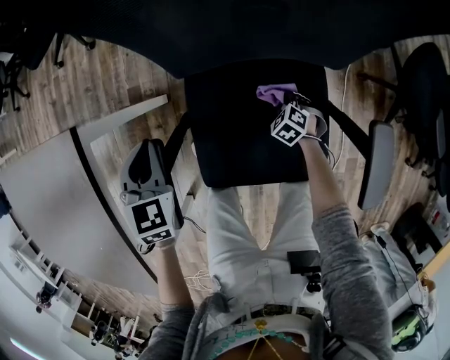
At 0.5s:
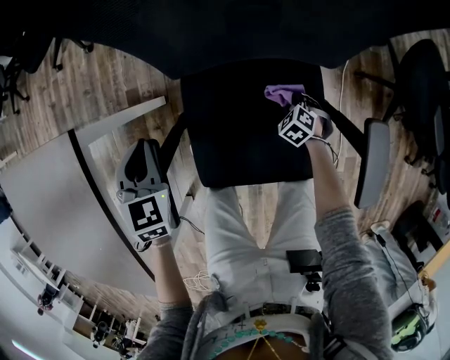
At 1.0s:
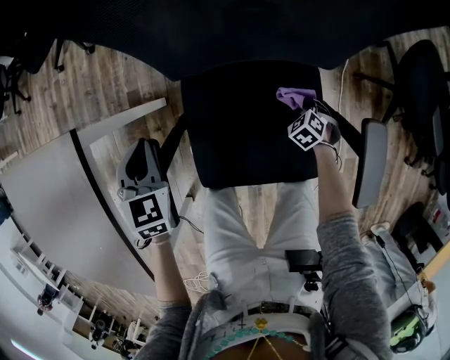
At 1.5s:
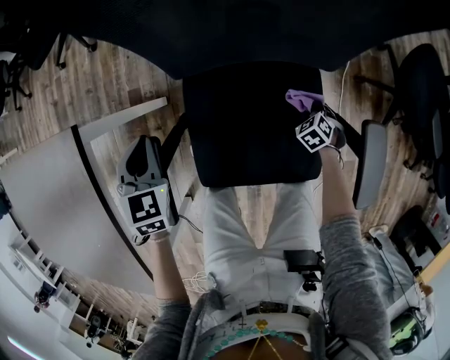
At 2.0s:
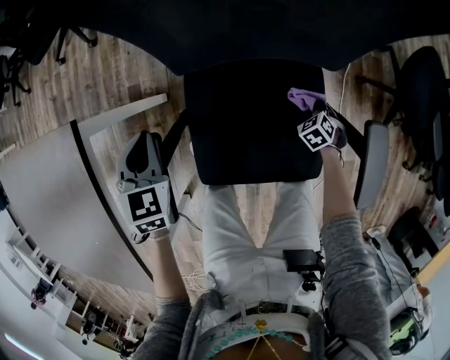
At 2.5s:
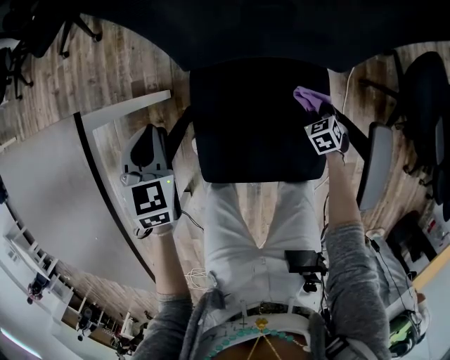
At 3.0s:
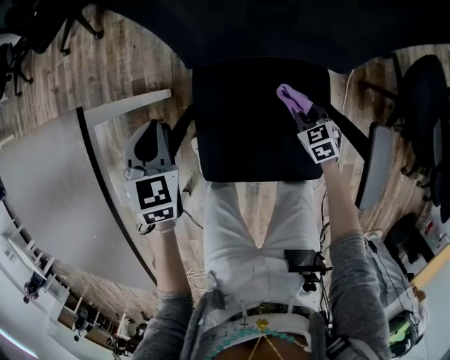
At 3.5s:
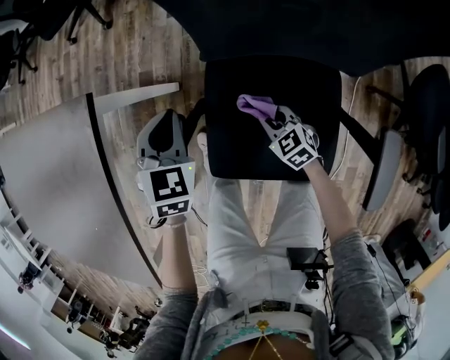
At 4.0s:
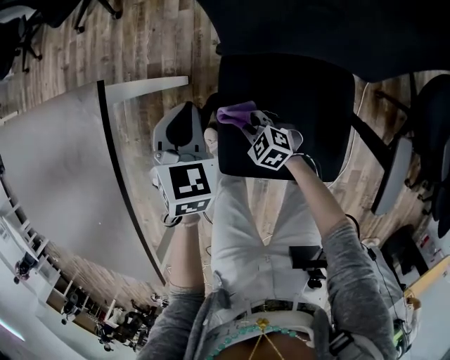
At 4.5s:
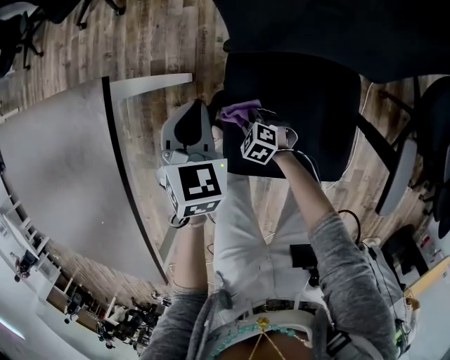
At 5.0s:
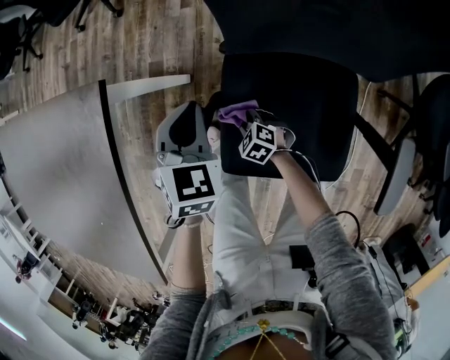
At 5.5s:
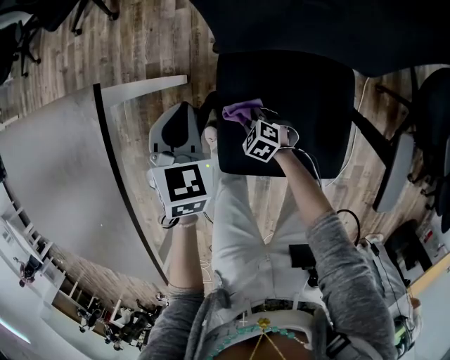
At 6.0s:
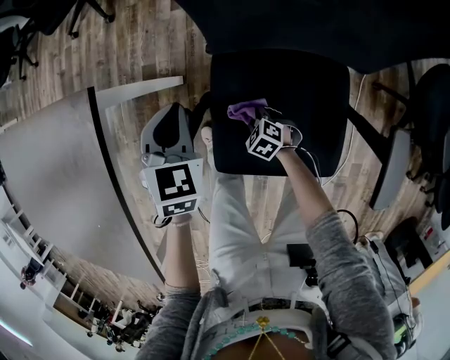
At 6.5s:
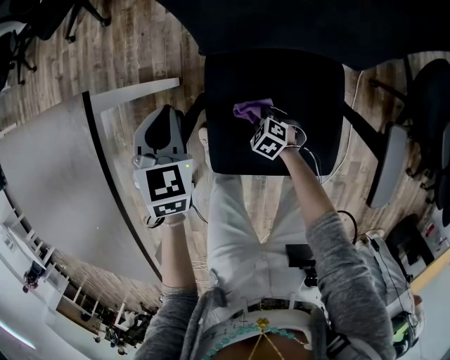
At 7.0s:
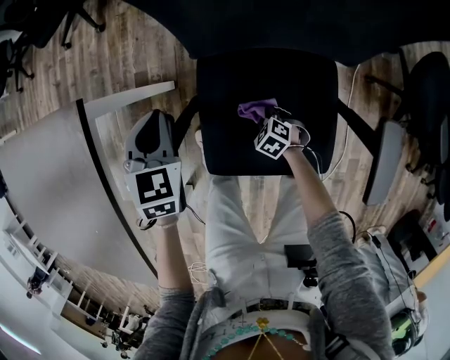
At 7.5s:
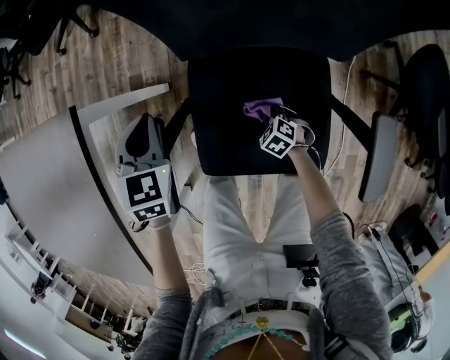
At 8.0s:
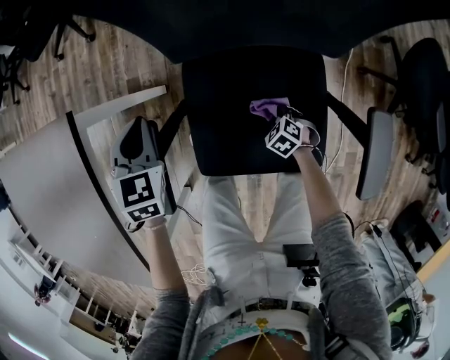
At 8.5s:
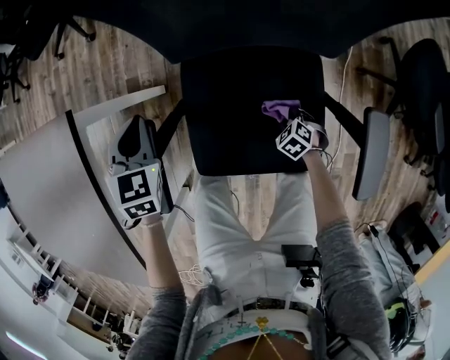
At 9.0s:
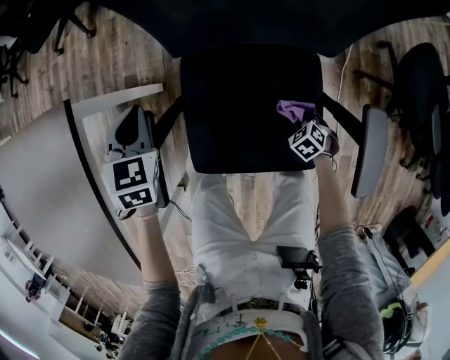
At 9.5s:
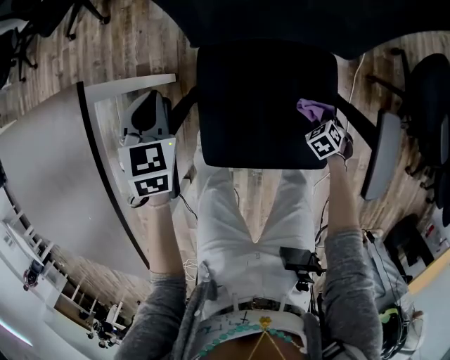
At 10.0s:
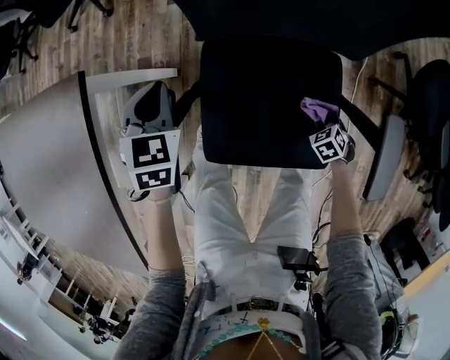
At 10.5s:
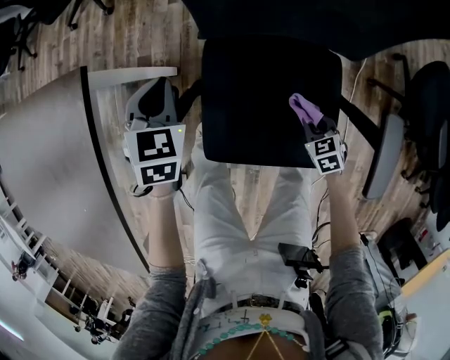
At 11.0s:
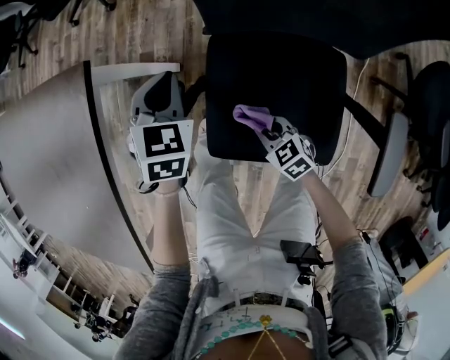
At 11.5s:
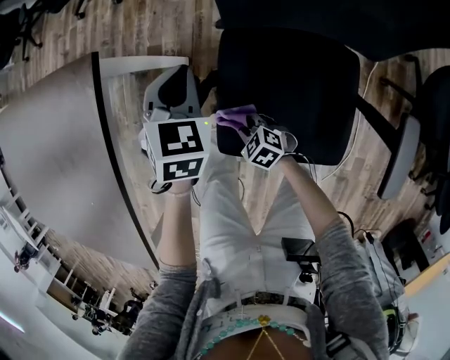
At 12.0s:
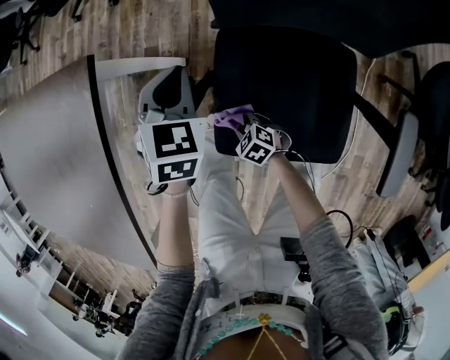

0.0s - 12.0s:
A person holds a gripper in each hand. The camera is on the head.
0.0s - 2.0s: The right gripper heads to the right, covering roughly 10 cm.
2.0s - 4.0s: The right gripper moves about 35 cm, and rotates roughly 40 degrees.
4.0s - 6.0s: The right gripper is displaced downward by roughly 5 cm.
6.0s - 8.0s: The right gripper moves to the right and backward, some 15 cm.
8.0s - 10.0s: The right gripper changes place by about 10 cm.
10.0s - 12.0s: The right gripper moves roughly 10 cm upward and comes back, and changes its angle by approximately 30 degrees.

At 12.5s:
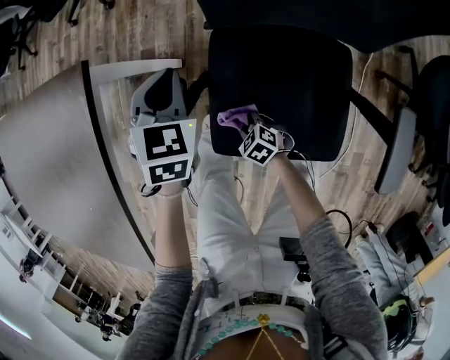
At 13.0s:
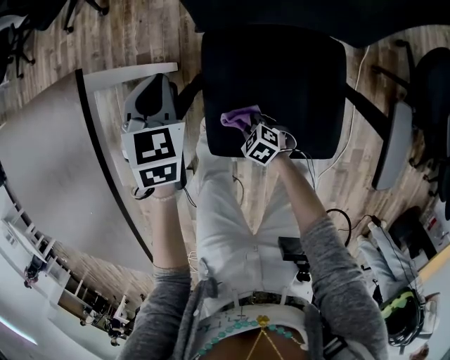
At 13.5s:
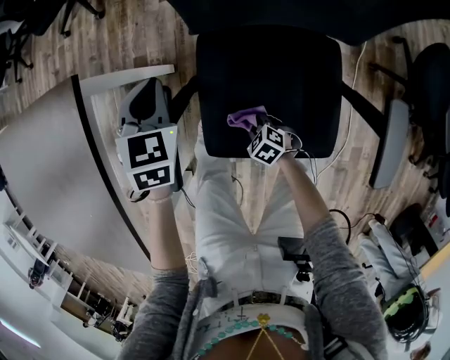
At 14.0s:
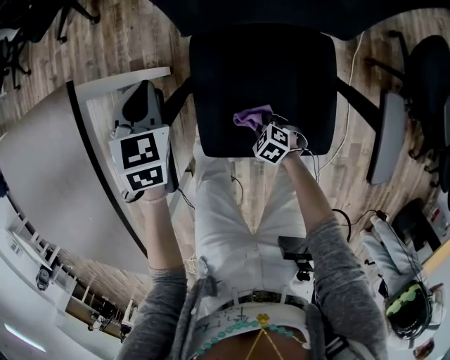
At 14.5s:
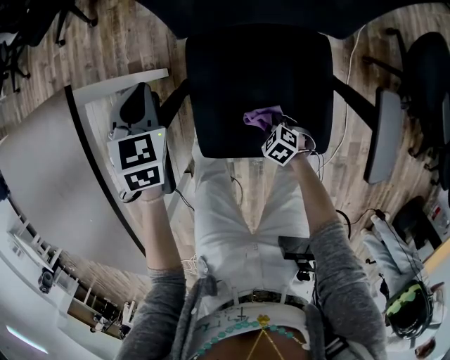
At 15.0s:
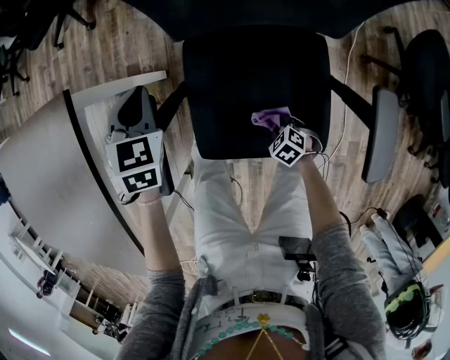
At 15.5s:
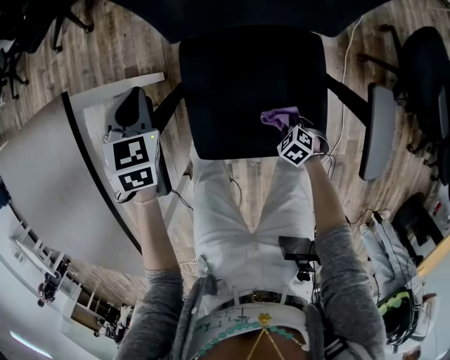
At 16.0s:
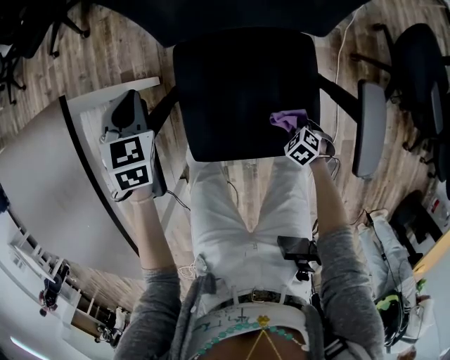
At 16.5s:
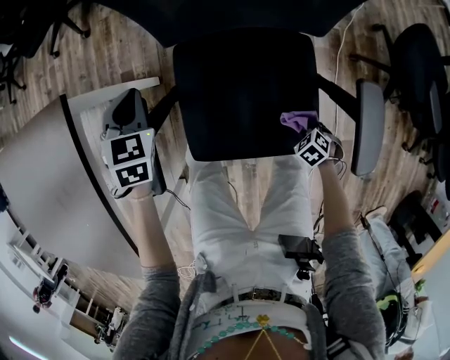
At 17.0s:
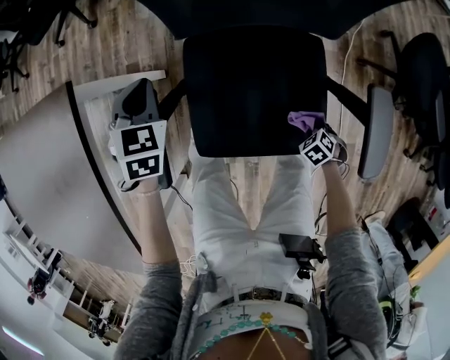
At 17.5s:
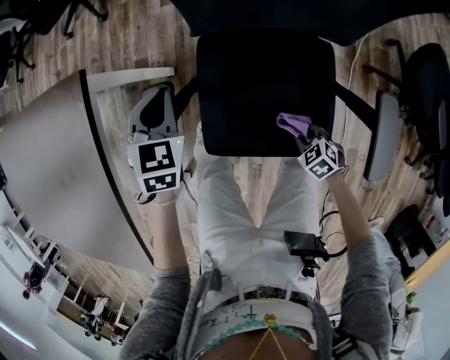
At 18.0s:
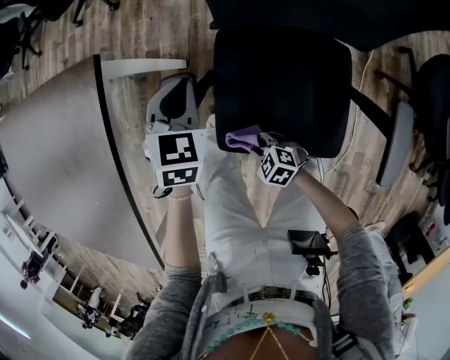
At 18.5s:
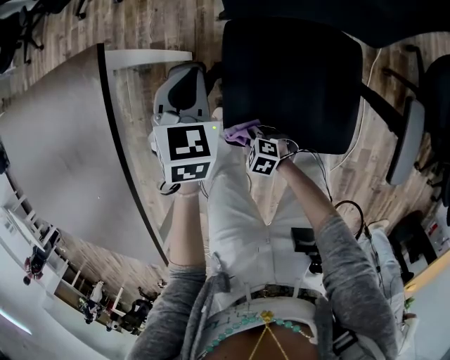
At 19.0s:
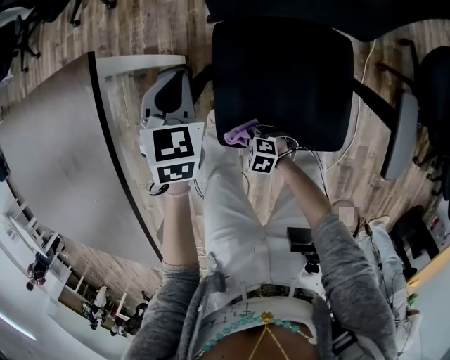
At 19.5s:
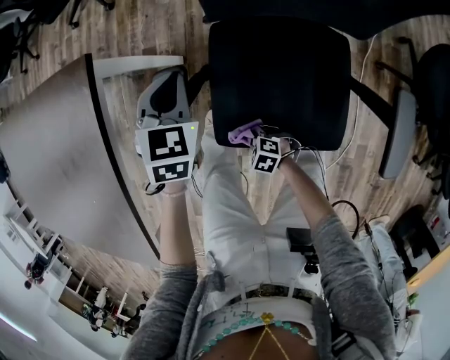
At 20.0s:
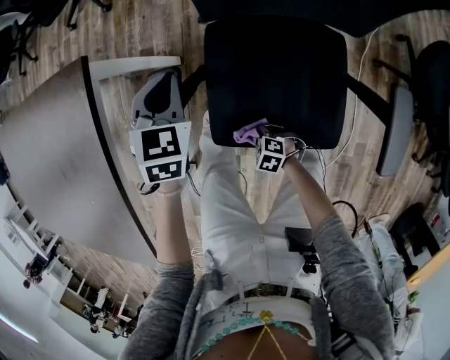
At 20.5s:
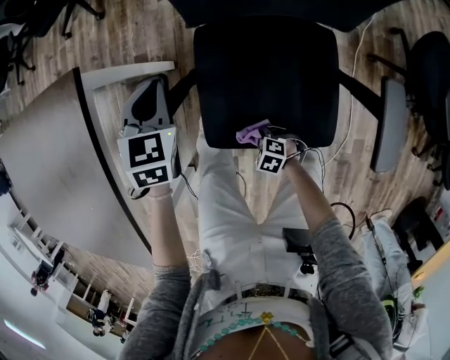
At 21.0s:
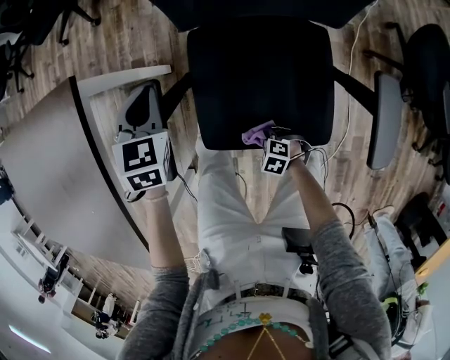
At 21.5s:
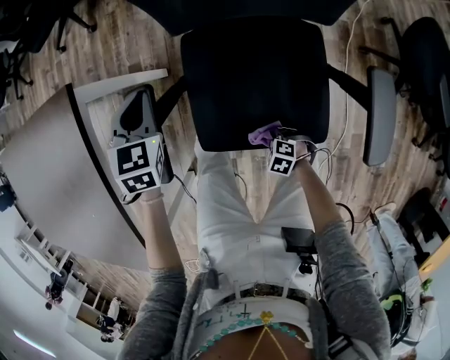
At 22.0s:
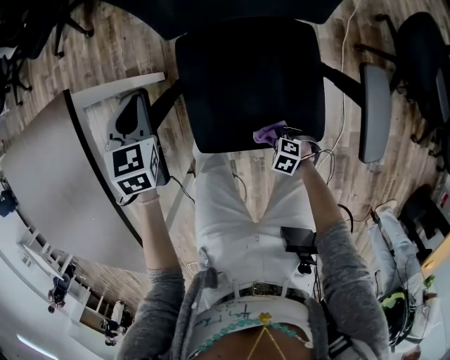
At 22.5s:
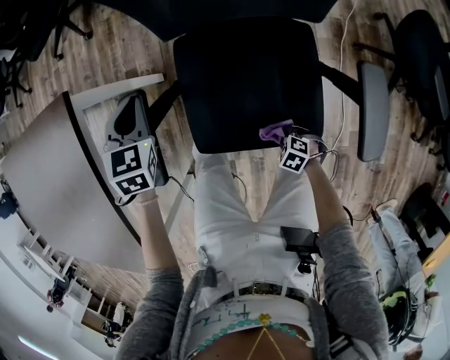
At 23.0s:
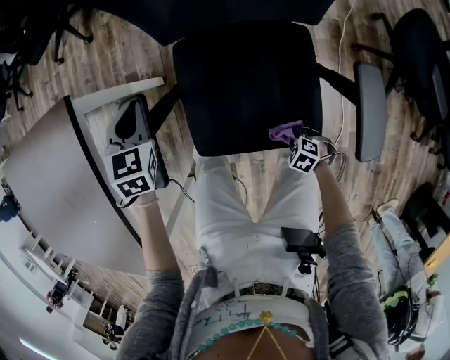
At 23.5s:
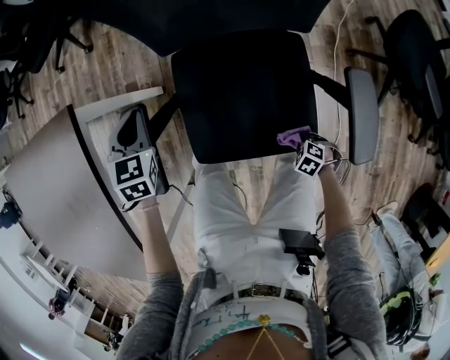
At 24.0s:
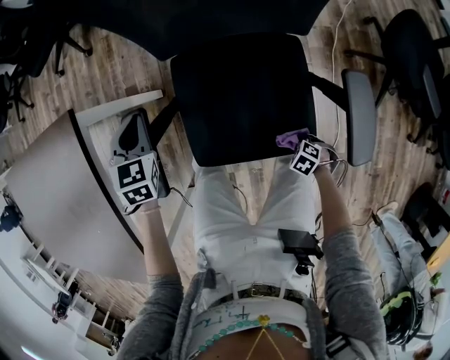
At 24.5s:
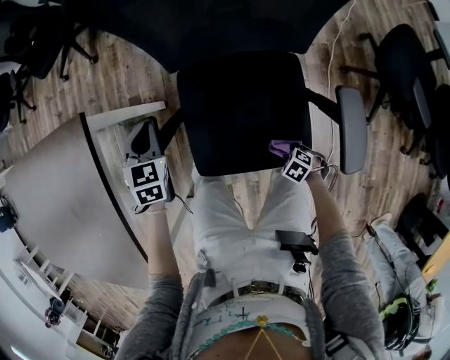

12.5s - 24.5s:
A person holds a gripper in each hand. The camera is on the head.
12.5s - 14.5s: The right gripper is displaced to the right and backward by some 15 cm.
14.5s - 16.5s: The right gripper moves roughly 15 cm.
16.5s - 18.5s: The right gripper ends up roughly 35 cm from where it was, and changes its angle by about 30 degrees.
18.5s - 20.5s: The right gripper shifts roughly 10 cm backward and to the right.
20.5s - 22.5s: The right gripper moves approximately 15 cm.
22.5s - 24.5s: The right gripper moves some 5 cm.

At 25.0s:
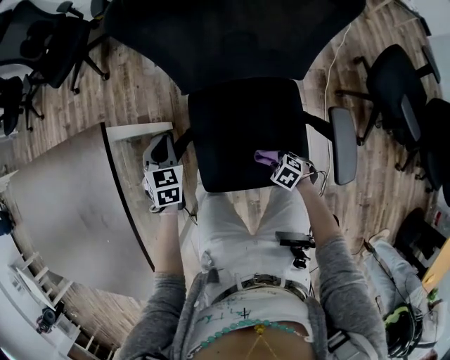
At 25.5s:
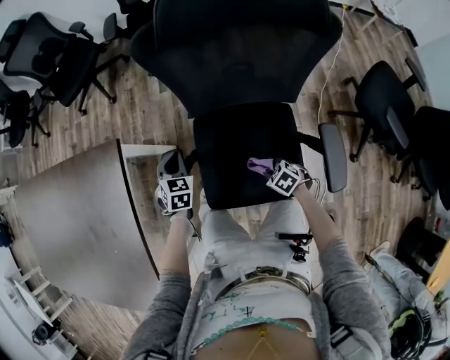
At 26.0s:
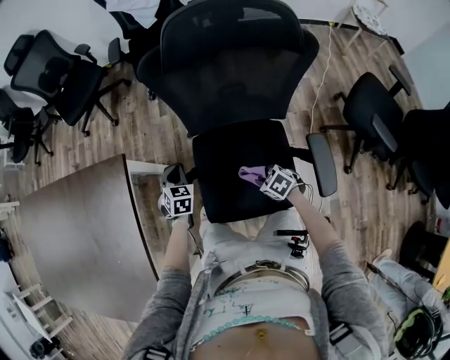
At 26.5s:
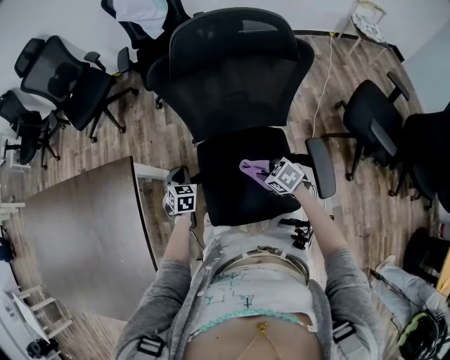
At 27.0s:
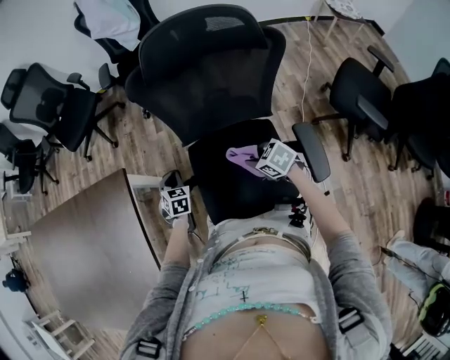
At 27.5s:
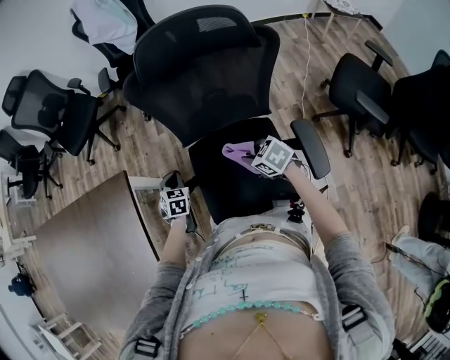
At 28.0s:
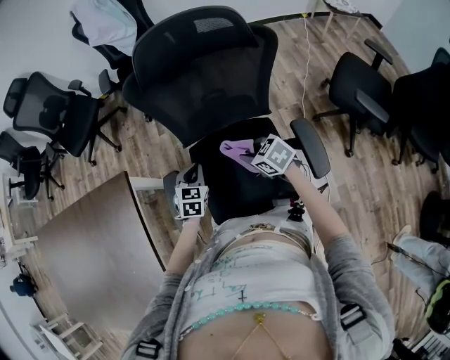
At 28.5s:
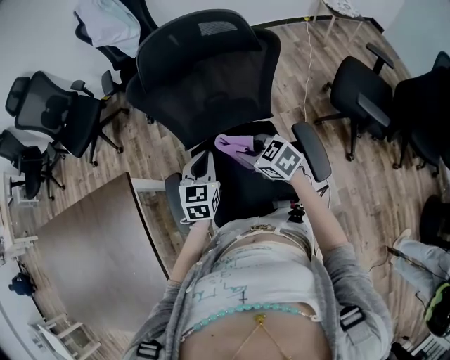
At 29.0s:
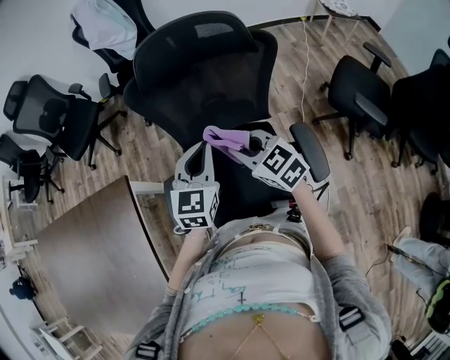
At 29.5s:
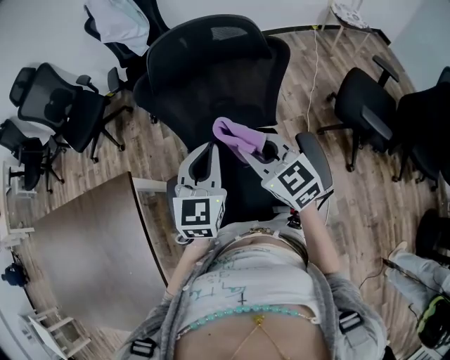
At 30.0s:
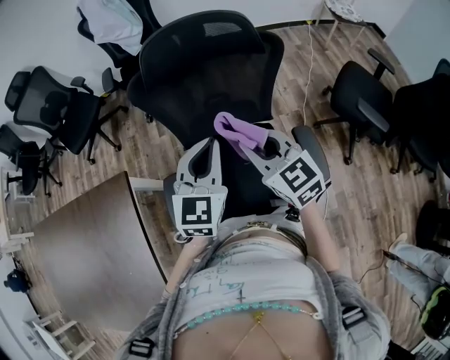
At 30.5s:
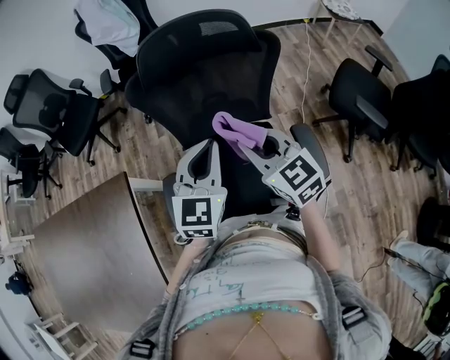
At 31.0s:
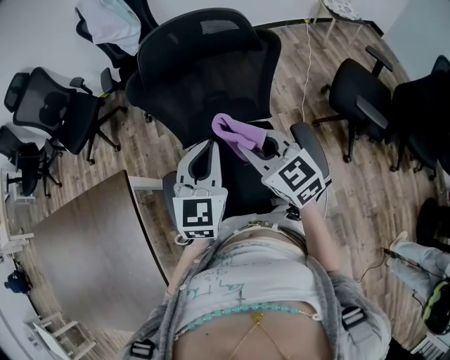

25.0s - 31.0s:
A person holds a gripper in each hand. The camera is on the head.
25.0s - 27.0s: The right gripper travels upward and forward by some 25 cm, and swivels about 30 degrees.
27.0s - 29.0s: The left gripper shifts roughly 30 cm upward and to the right, and turns by about 40 degrees. The right gripper heads upward, covering approximately 20 cm, and rotates roughly 30 degrees.
29.0s - 31.0s: The left gripper moves roughly 5 cm. Meanwhile the right gripper moves upward, about 5 cm.
